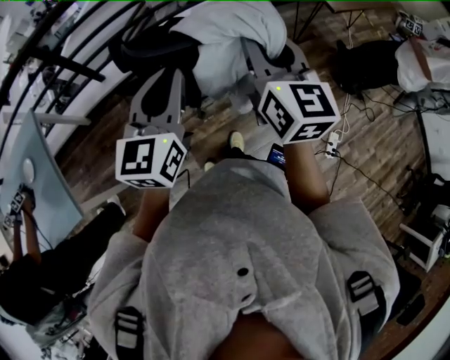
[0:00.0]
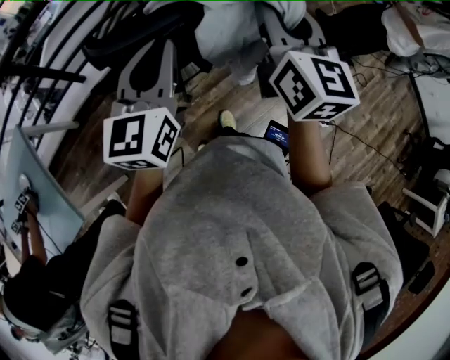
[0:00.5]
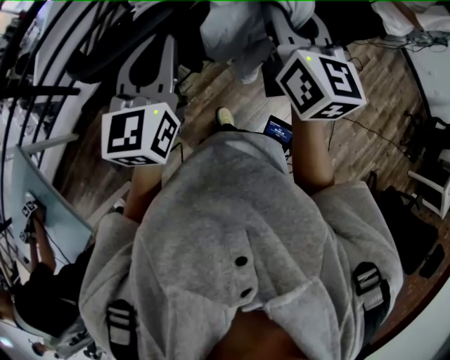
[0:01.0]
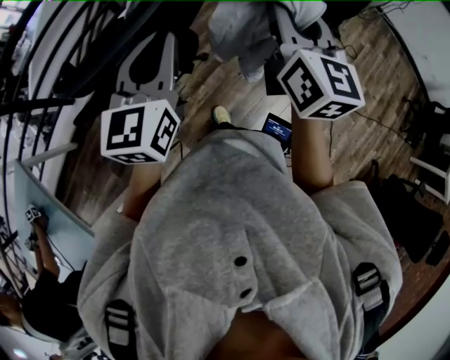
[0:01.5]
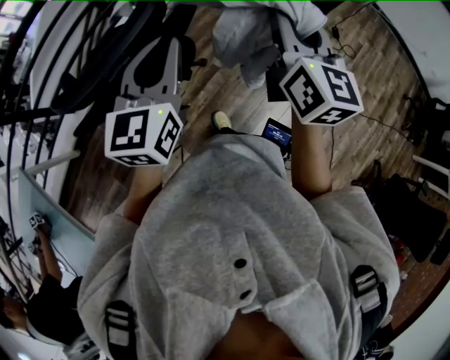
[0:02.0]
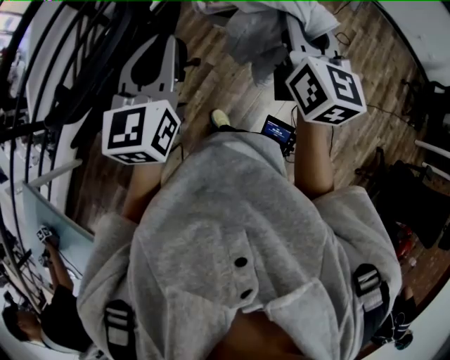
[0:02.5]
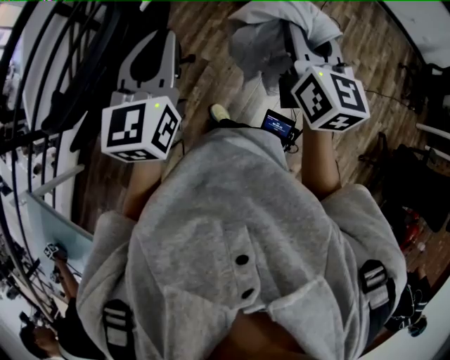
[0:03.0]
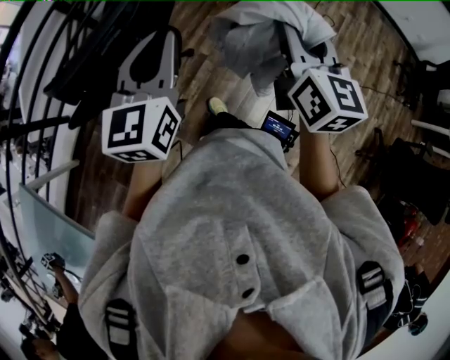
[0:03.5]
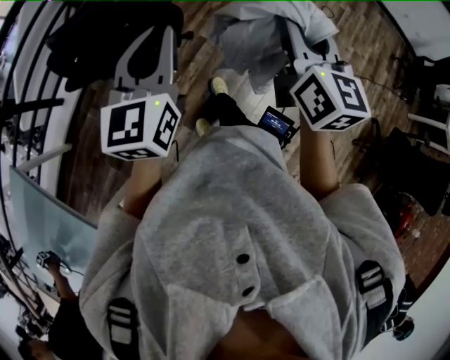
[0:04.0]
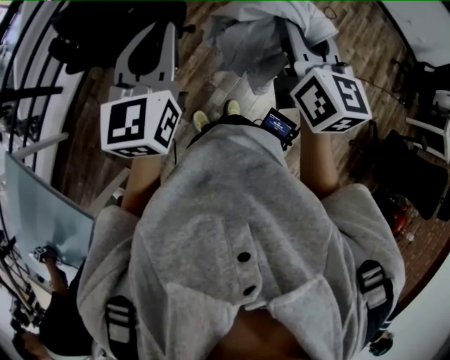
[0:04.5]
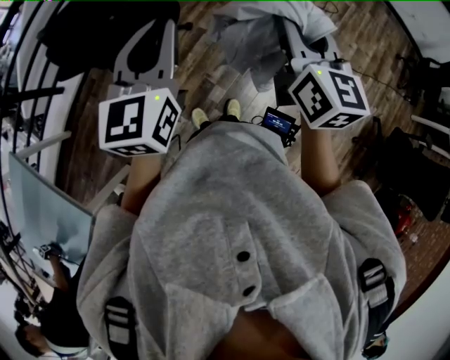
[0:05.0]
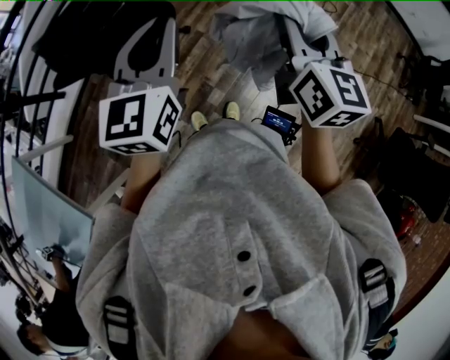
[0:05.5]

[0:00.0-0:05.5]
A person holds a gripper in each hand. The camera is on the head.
0:00.0 to 0:02.0: The right gripper shifts roughly 20 cm to the right, and swivels roughly 30 degrees, while the left gripper goes roughly 20 cm to the right and forward.
0:02.0 to 0:03.5: The left gripper is displaced backward by roughly 5 cm. Meanwhile the right gripper goes some 10 cm backward.
0:03.5 to 0:05.5: The two grippers go roughly 10 cm backward and to the right.

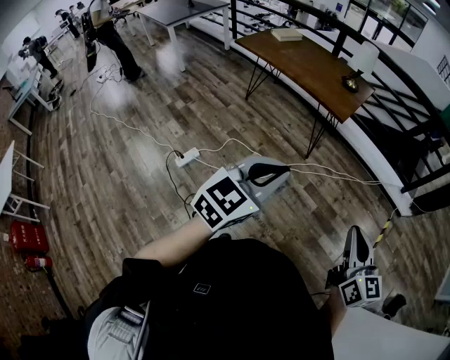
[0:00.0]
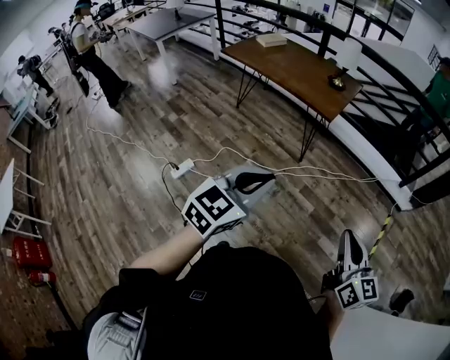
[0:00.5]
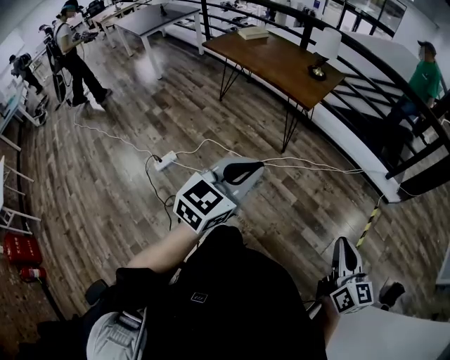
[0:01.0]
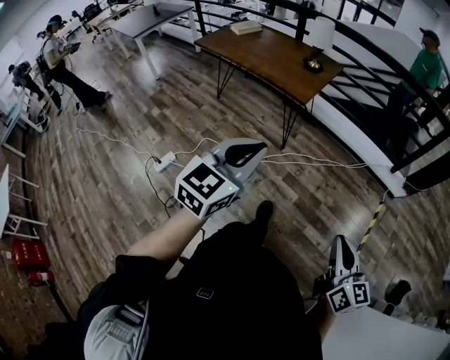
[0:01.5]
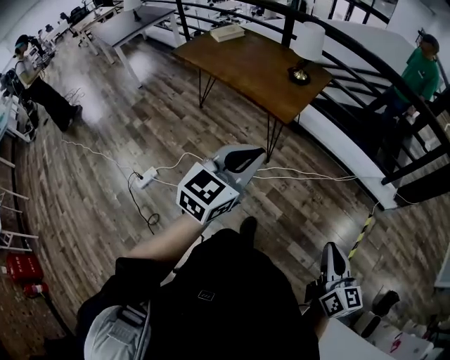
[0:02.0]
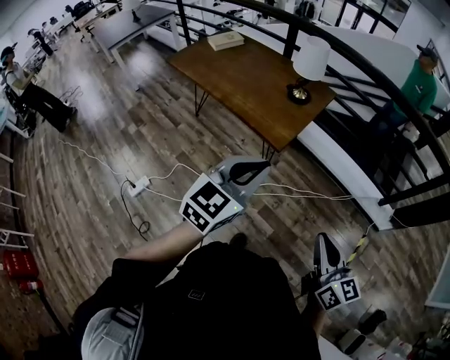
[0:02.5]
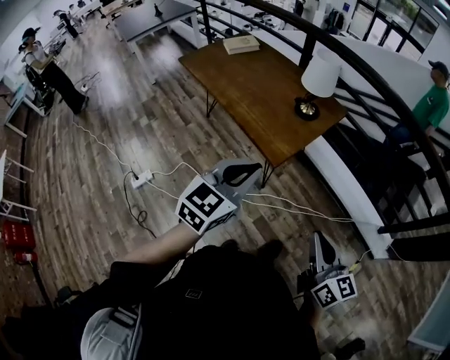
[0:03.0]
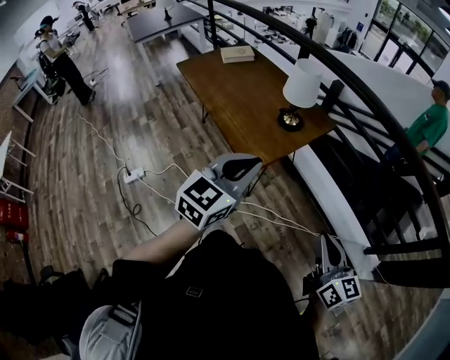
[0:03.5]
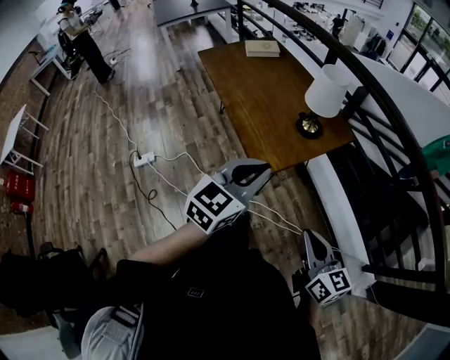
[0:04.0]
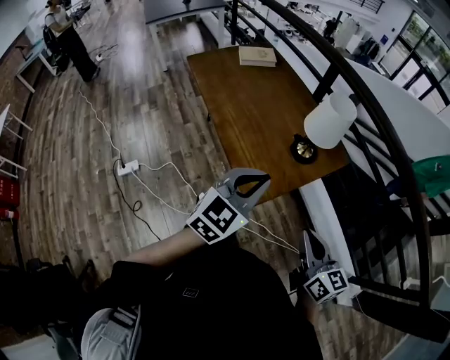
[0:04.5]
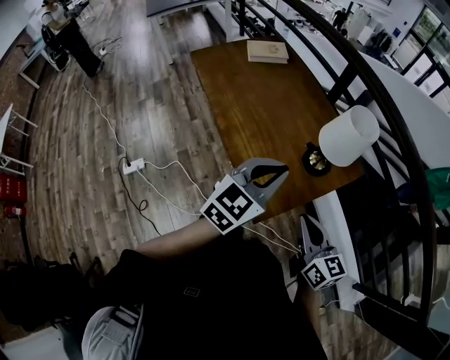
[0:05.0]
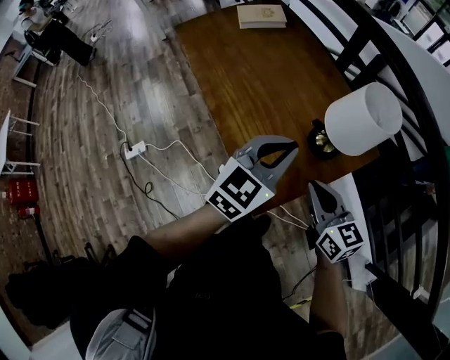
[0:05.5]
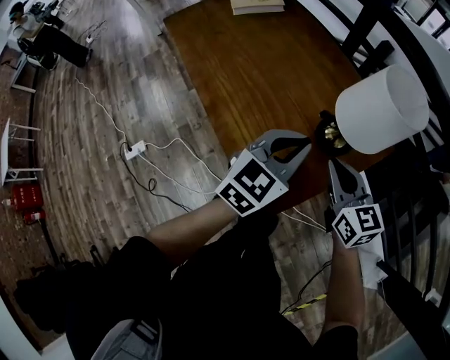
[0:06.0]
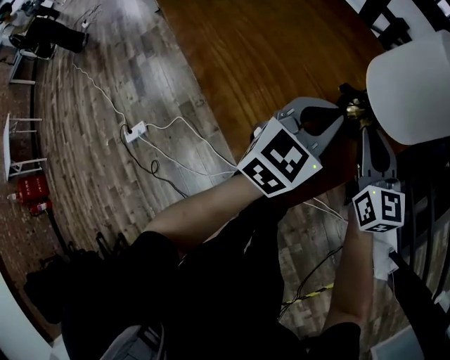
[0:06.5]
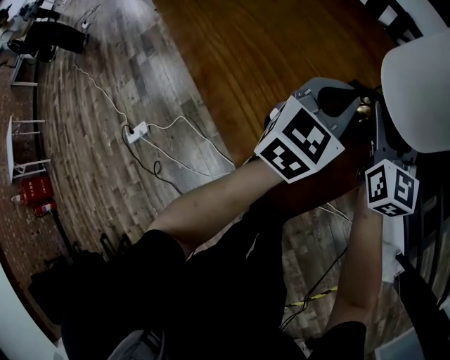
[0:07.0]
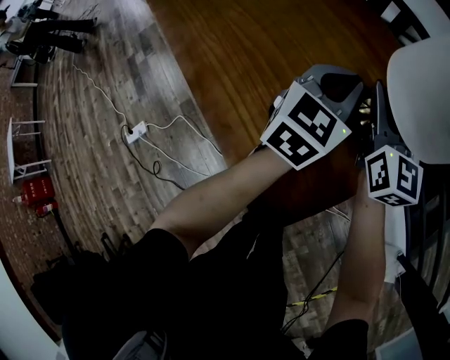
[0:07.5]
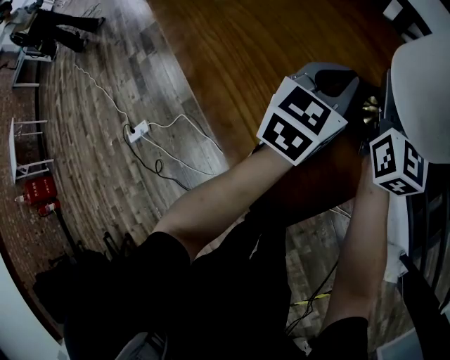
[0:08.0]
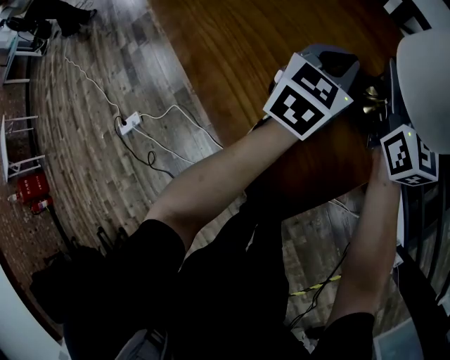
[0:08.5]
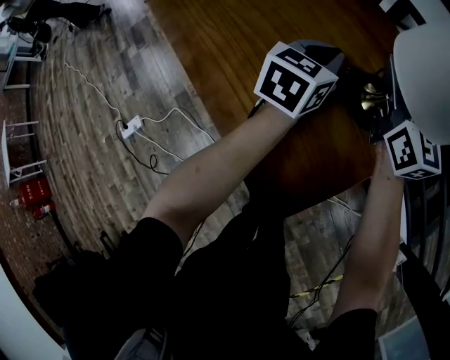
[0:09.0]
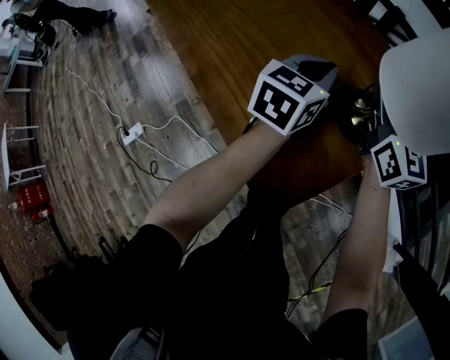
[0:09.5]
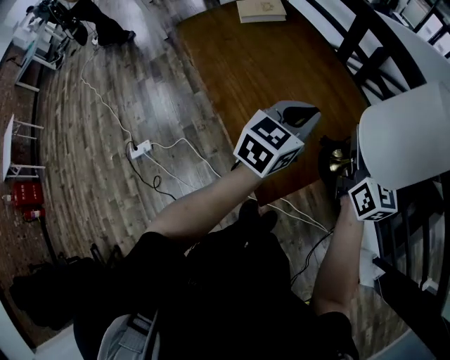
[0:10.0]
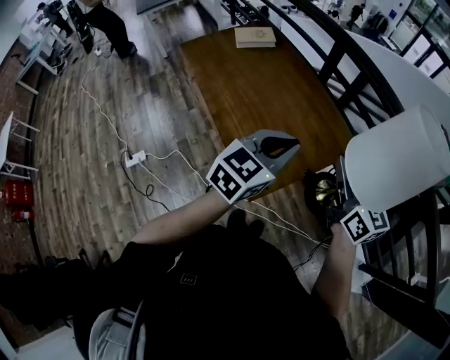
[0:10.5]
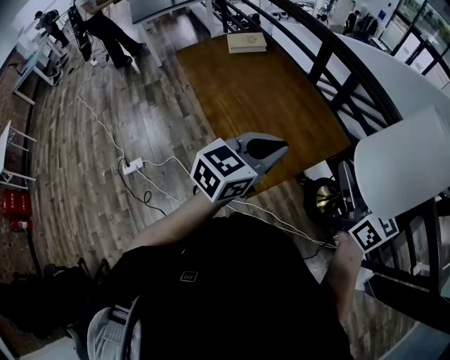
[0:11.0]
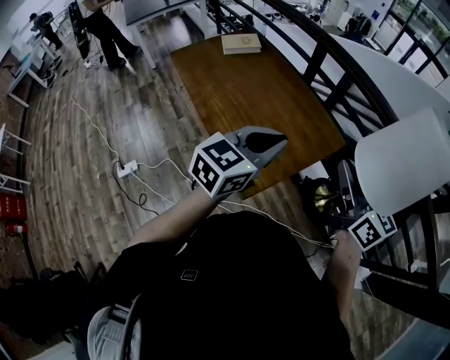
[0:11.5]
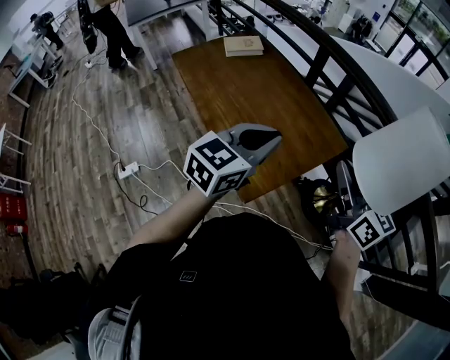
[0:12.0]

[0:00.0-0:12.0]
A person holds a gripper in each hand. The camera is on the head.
0:00.0 to 0:02.0: The right gripper shifts some 25 cm to the right and forward; the left gripper travels forward and to the right by roughly 30 cm.
0:02.0 to 0:04.0: The left gripper changes place by roughly 30 cm, and rotates about 20 degrees. Meanwhile the right gripper ends up some 40 cm from where it was, and swivels about 40 degrees.
0:04.0 to 0:06.0: The right gripper moves forward, approximately 40 cm, while the left gripper moves forward and downward, approximately 35 cm.
0:06.0 to 0:08.0: The left gripper is displaced forward and downward by roughly 15 cm. Meanwhile the right gripper heads forward, covering about 20 cm, swivels about 30 degrees, and opens and closes again.
0:08.0 to 0:10.0: Both grippers travel together upward and backward, approximately 20 cm.
0:10.0 to 0:12.0: Both grippers travel together backward and upward, about 20 cm.

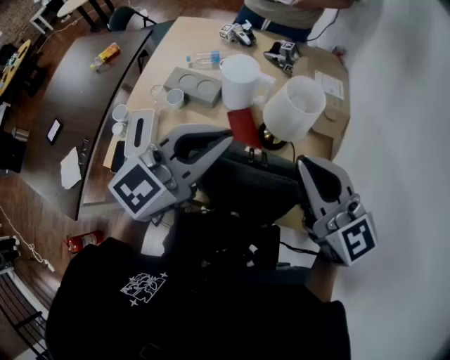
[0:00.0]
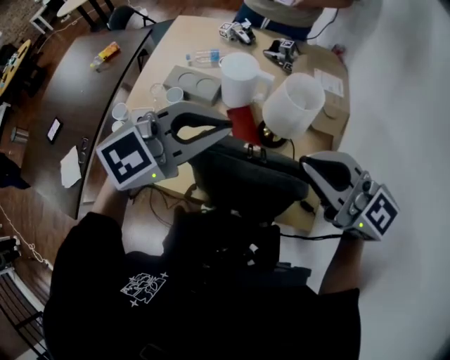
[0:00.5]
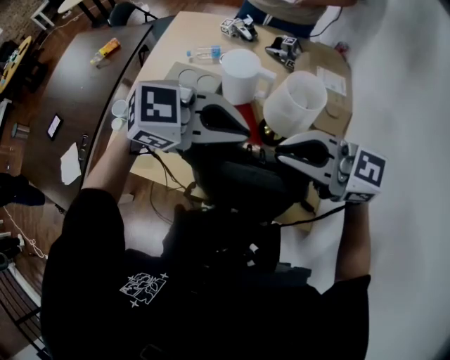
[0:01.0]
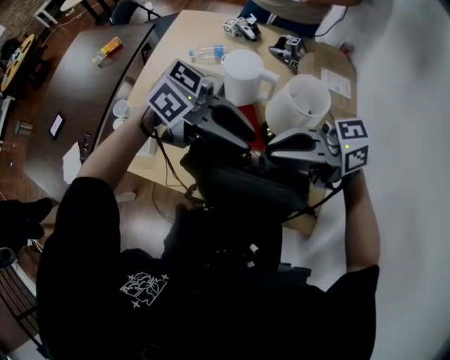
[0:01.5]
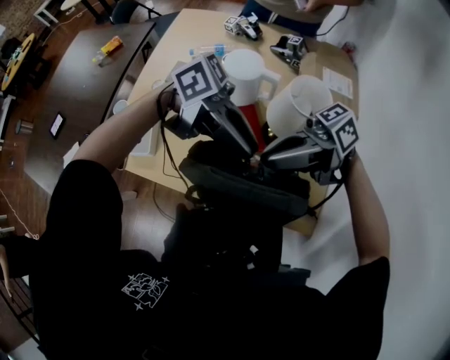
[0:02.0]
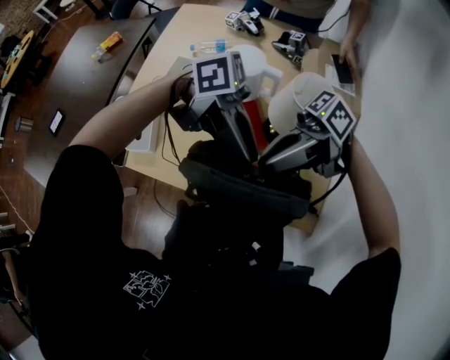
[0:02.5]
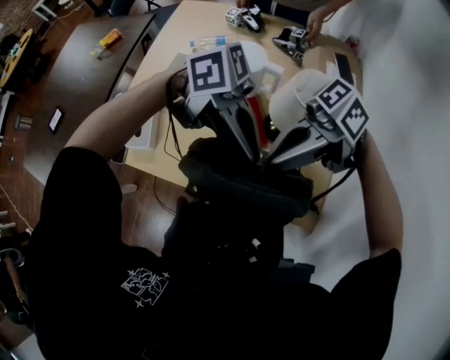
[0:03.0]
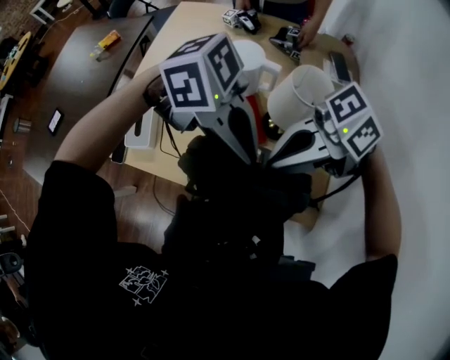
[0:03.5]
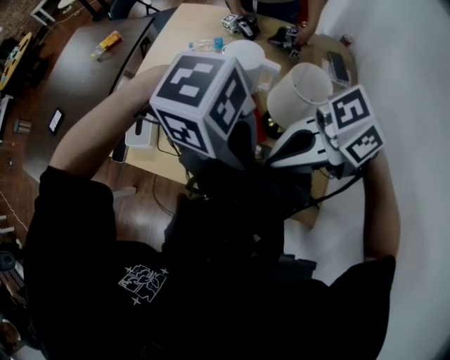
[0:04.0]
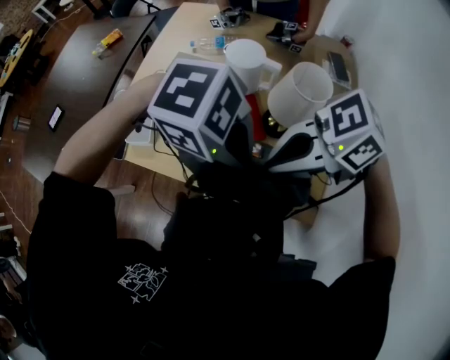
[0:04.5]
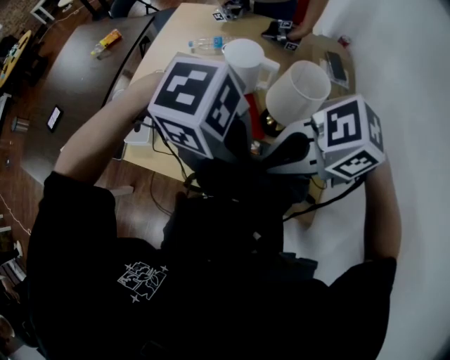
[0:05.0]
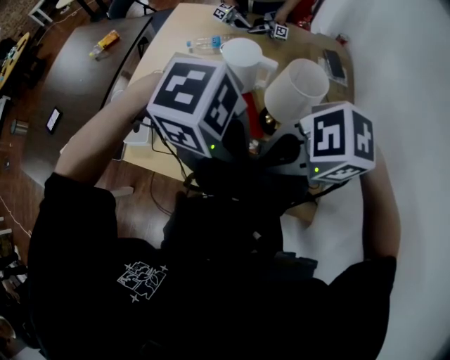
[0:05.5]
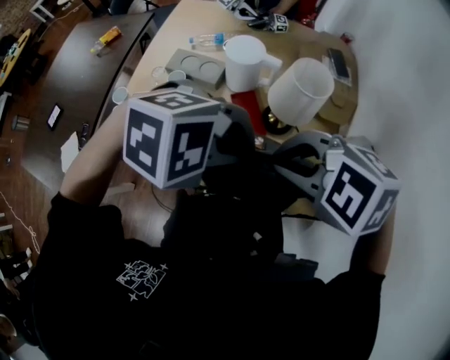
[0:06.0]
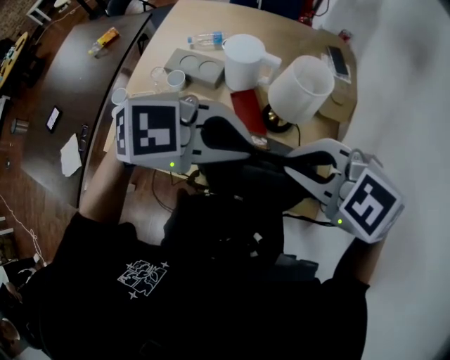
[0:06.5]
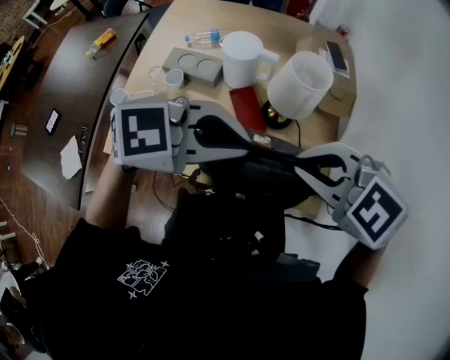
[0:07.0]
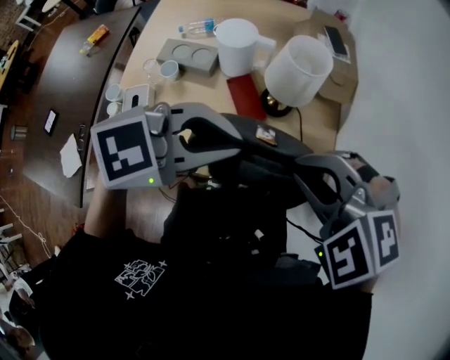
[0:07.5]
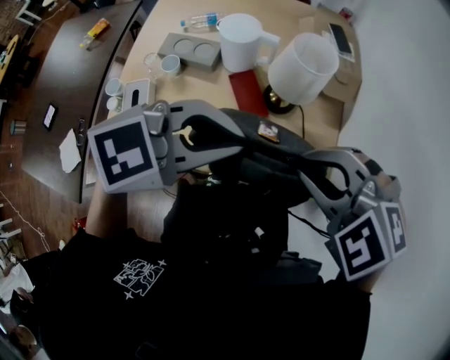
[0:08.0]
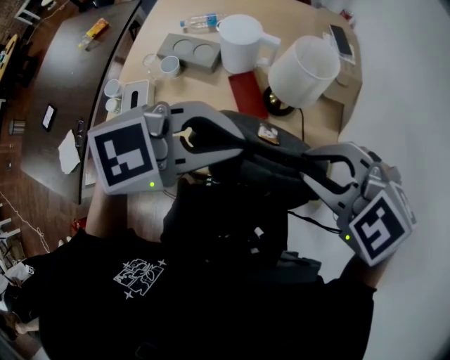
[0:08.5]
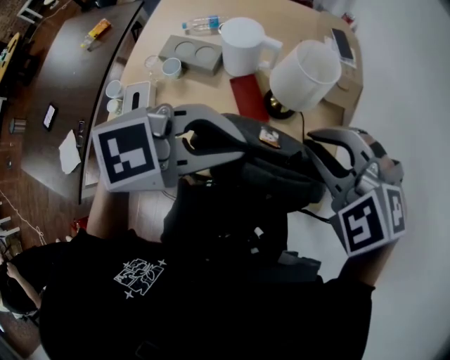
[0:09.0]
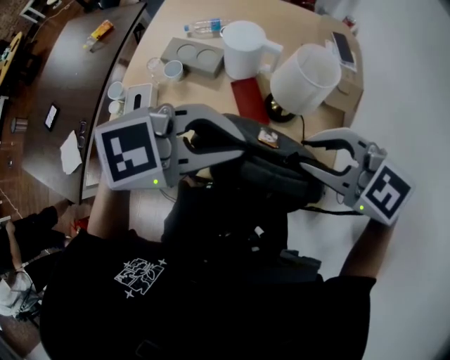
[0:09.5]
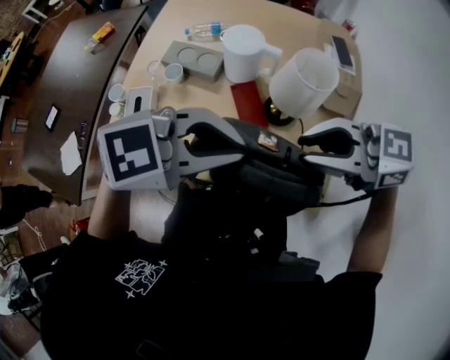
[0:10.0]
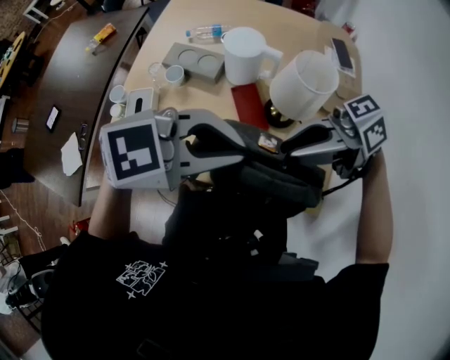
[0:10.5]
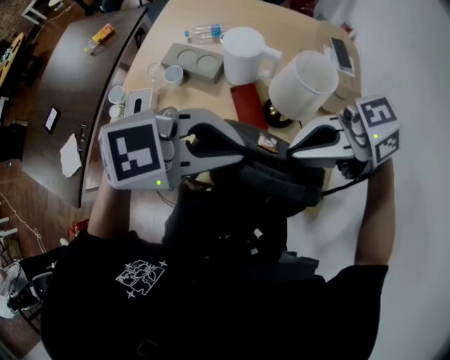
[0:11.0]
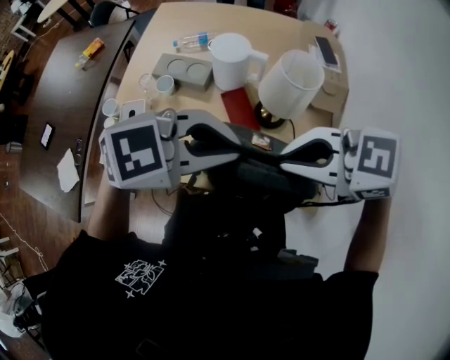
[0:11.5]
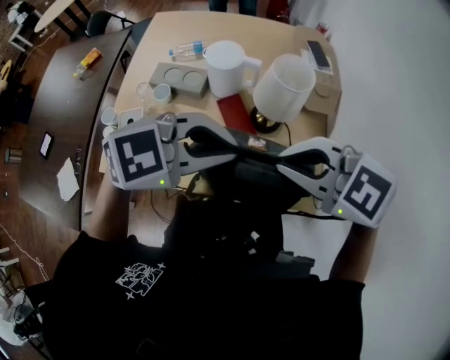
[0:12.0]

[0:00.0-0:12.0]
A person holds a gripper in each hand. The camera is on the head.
0:00.0 to 0:02.0: The grippers both shift downward by about 10 cm. The right gripper changes its angle by approximately 90 degrees. Meanwhile the left gripper changes its angle by about 90 degrees, and opens.
0:02.0 to 0:04.0: The left gripper travels forward by roughly 5 cm, points its fingers about 40 degrees further downward, and closes up; the right gripper ends up some 5 cm from where it was, and rotates approximately 30 degrees.
0:04.0 to 0:06.0: The right gripper points its fingers roughly 30 degrees further downward. The left gripper changes its angle by some 30 degrees.
0:06.0 to 0:08.0: The left gripper swivels approximately 30 degrees.
0:08.0 to 0:10.0: The right gripper tips its fingers upward by some 30 degrees, and opens its fingers.
0:10.0 to 0:12.0: The right gripper swivels some 30 degrees, and closes its fingers.
